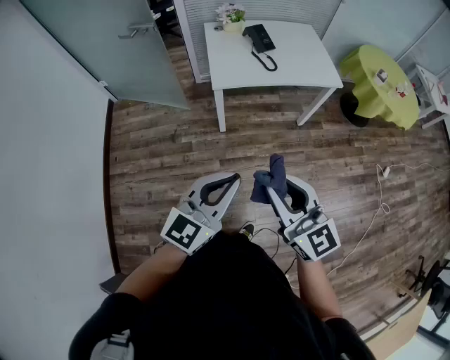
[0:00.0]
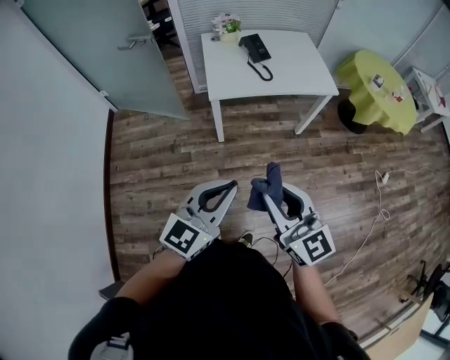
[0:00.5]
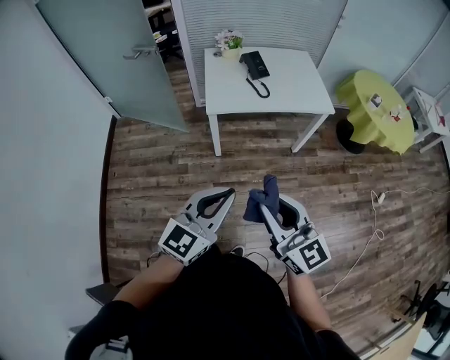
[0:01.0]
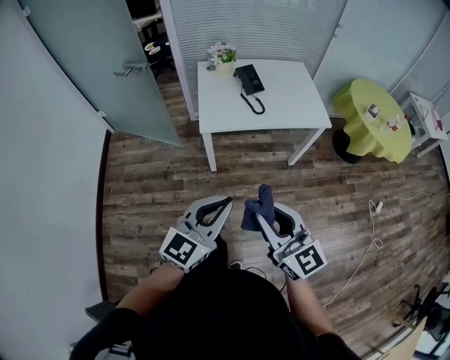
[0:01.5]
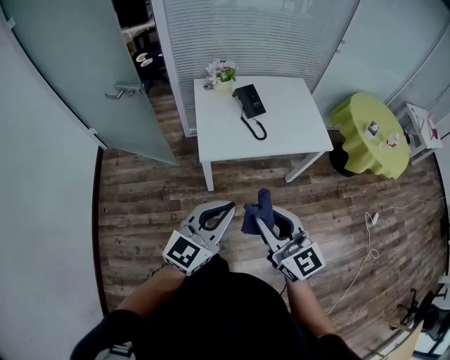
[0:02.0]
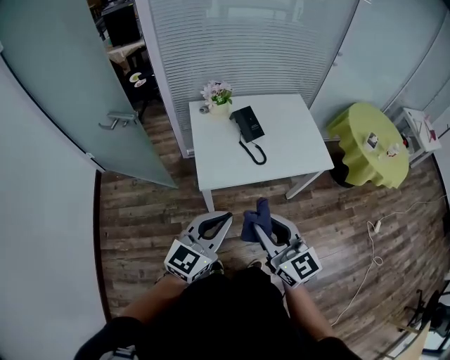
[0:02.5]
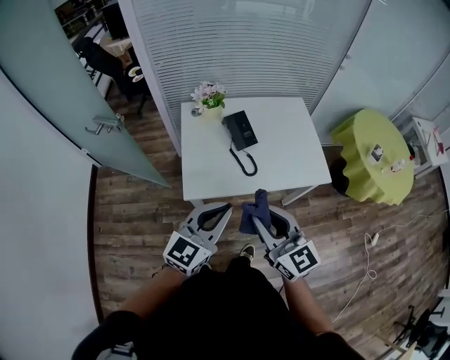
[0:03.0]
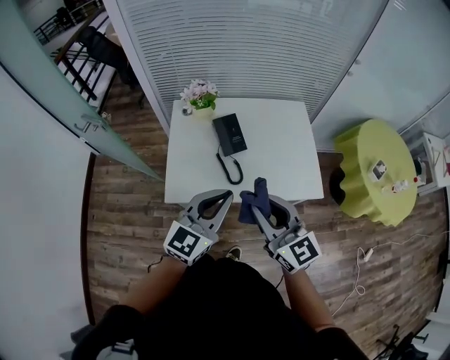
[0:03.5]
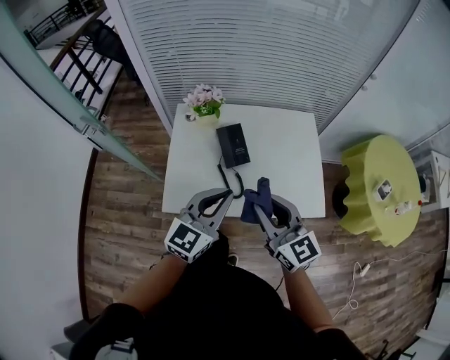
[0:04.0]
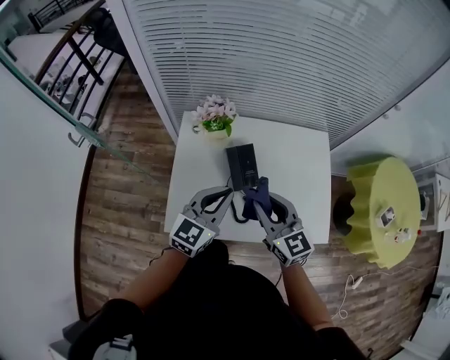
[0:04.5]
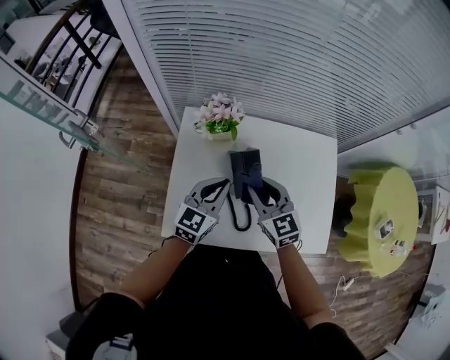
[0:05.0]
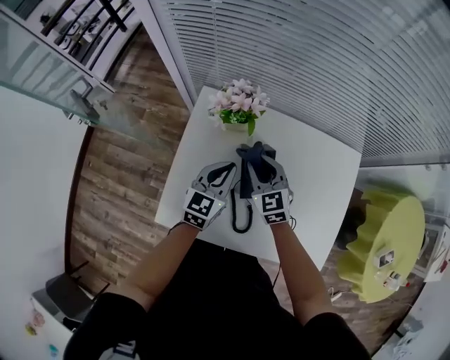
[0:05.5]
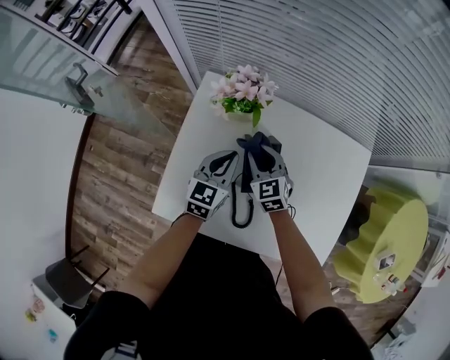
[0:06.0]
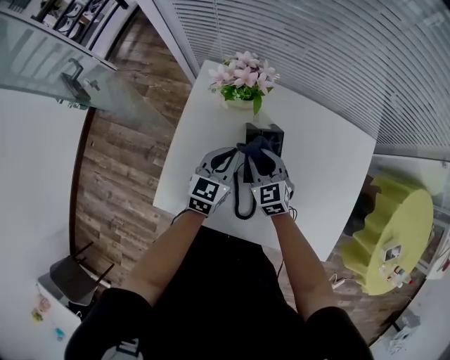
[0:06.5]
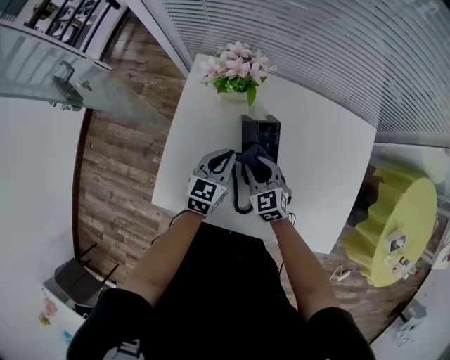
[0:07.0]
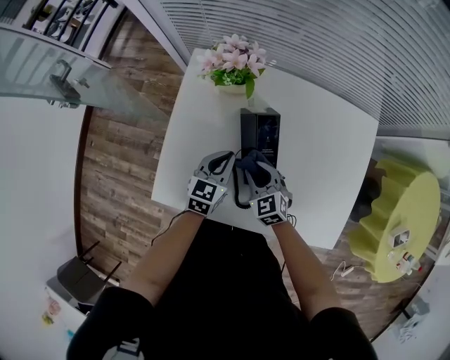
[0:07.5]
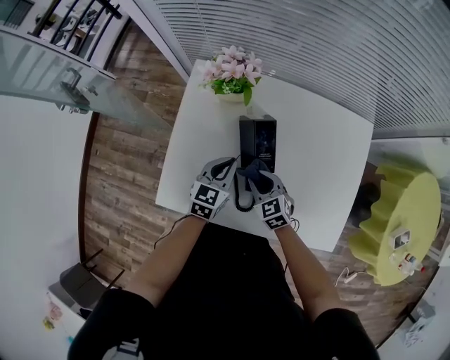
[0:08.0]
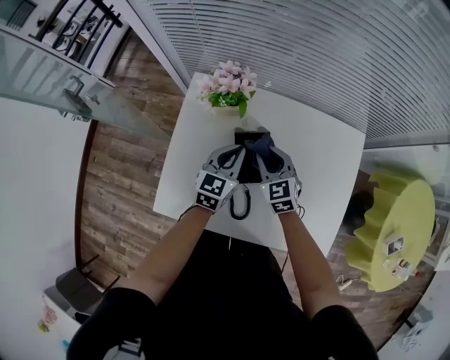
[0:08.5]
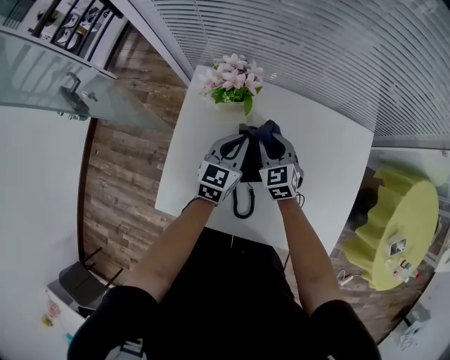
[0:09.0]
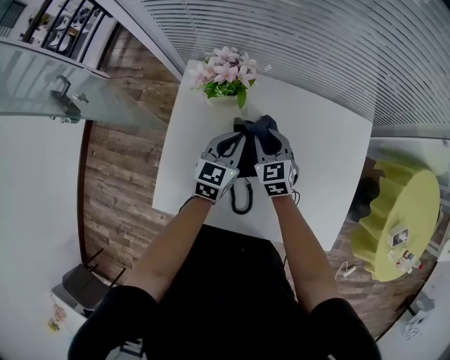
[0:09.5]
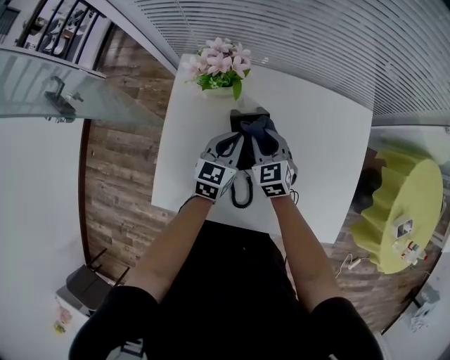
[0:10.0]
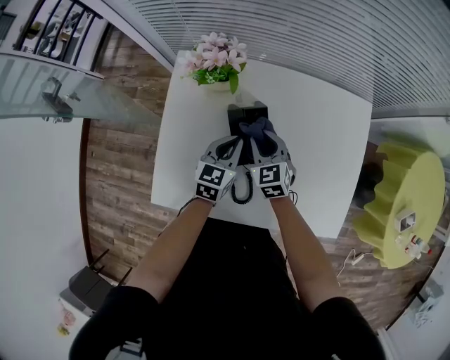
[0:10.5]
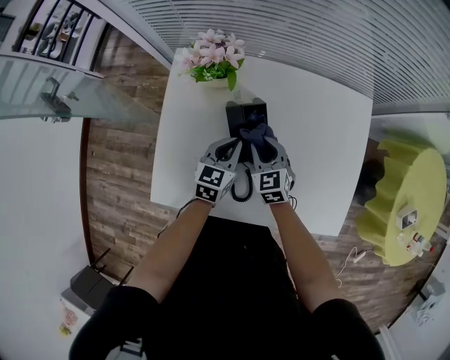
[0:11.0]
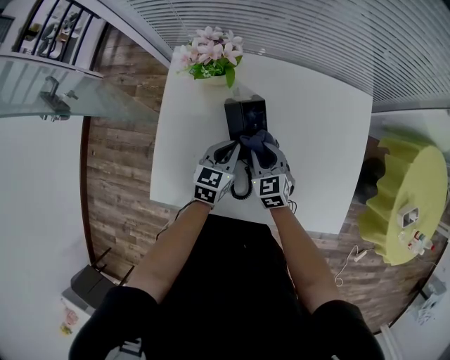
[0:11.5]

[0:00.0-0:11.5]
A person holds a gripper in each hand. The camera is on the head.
0.0 to 2.0 s: The grippers both shift forward by approximately 20 cm.
2.0 to 4.0 s: The pair of grippers is taken forward and to the right, some 40 cm.
4.0 to 6.0 s: The two grippers go roughly 40 cm forward and downward. The left gripper changes its angle by approximately 30 degrees. Meanwhile the right gripper swivels approximately 30 degrees.
6.0 to 7.5 s: The left gripper is displaced downward and backward by some 10 cm, while the right gripper is displaced backward and downward by some 15 cm.
7.5 to 9.5 s: Both grippers travel together forward and upward, some 15 cm.
9.5 to 11.5 s: The two grippers go roughly 10 cm backward and downward.

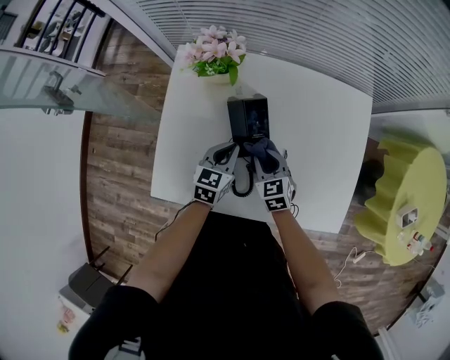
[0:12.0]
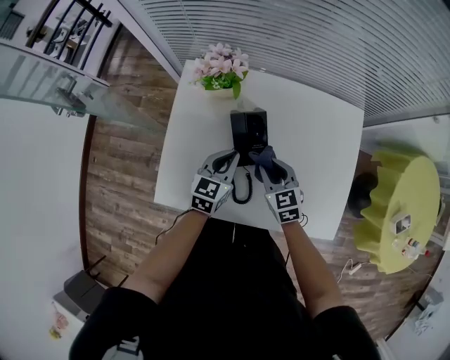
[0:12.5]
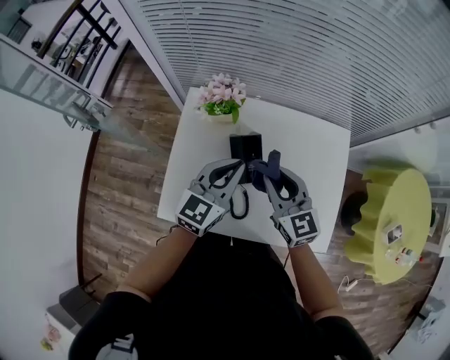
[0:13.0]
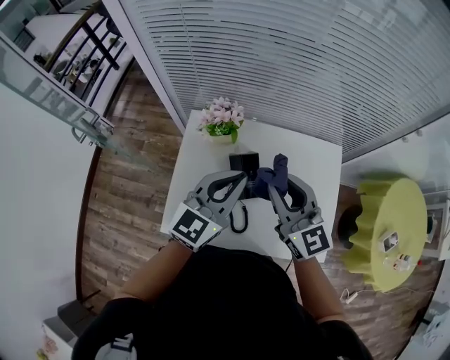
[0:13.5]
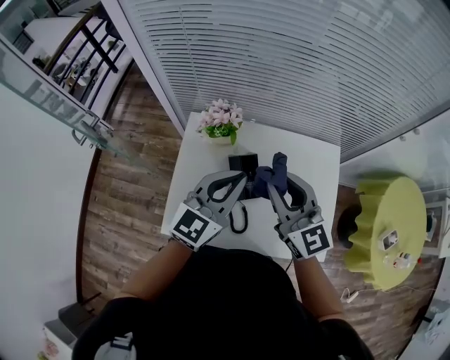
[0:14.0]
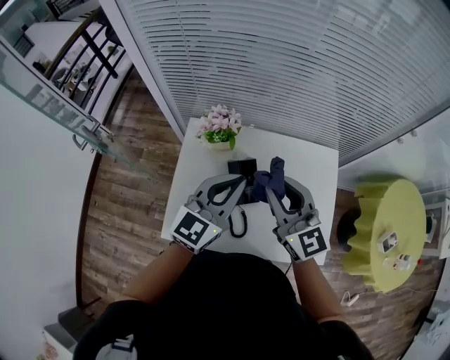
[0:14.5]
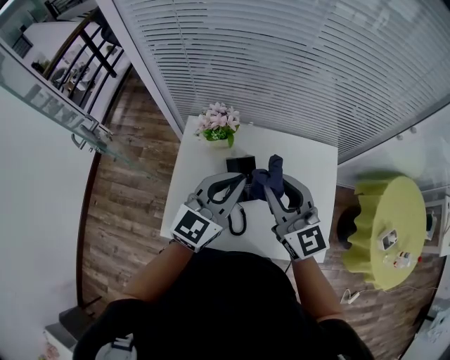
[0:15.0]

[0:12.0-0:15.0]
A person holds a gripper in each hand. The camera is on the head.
12.0 to 13.5 s: Both grippers travel together upward, some 35 cm. The left gripper rotates some 30 degrees. Meanwhile the right gripper tilts its fingers approximately 40 degrees upward.
13.5 to 15.0 s: There are only small adjustments of the grippers.

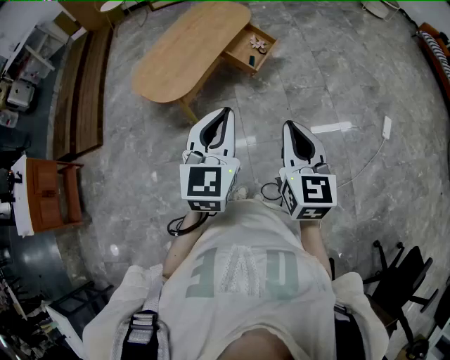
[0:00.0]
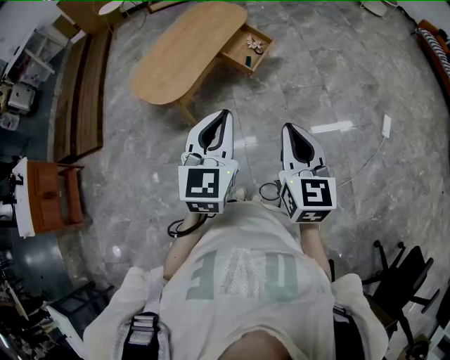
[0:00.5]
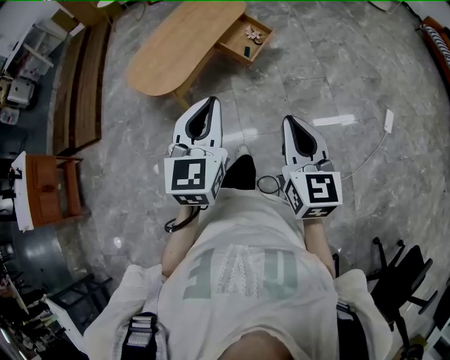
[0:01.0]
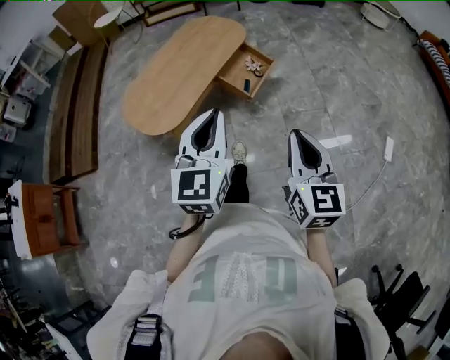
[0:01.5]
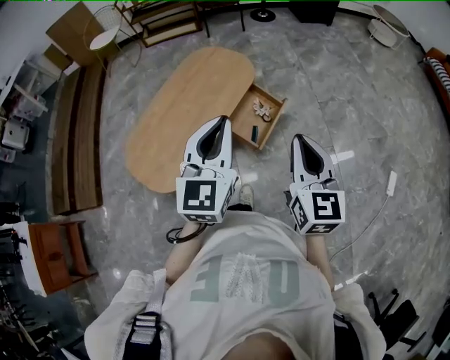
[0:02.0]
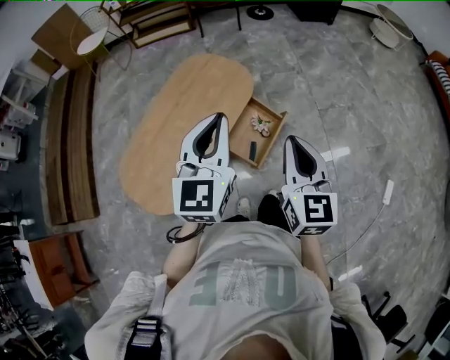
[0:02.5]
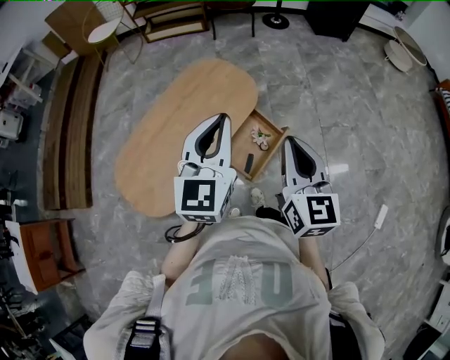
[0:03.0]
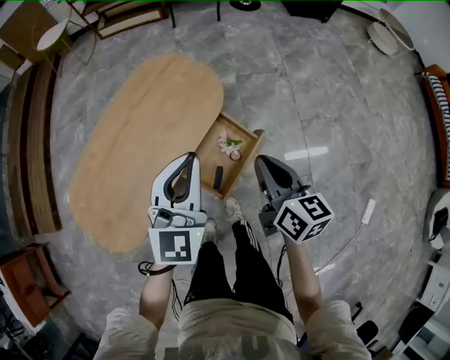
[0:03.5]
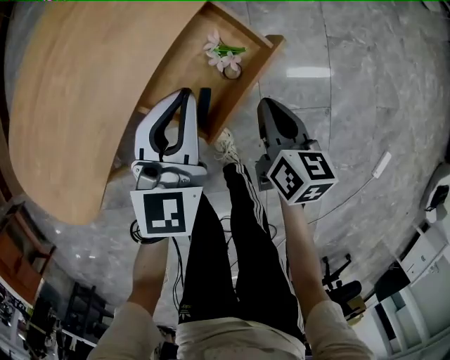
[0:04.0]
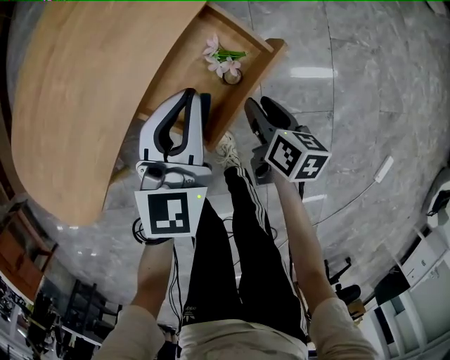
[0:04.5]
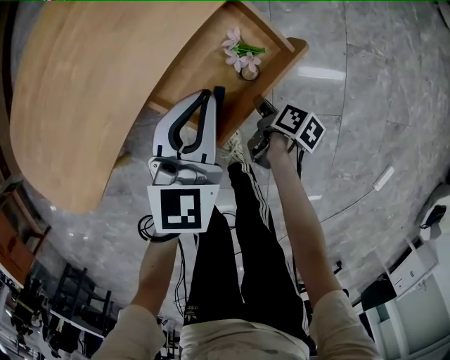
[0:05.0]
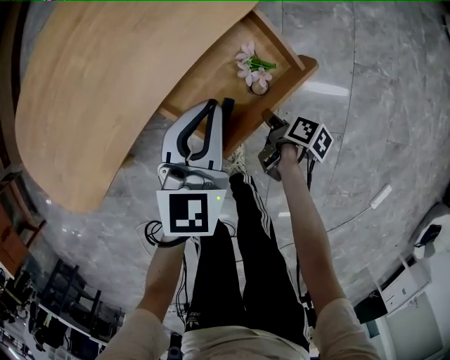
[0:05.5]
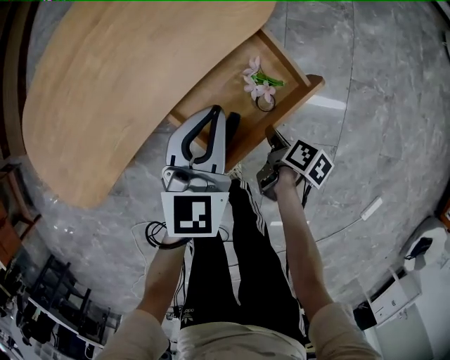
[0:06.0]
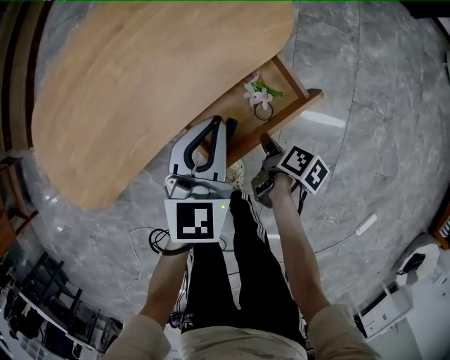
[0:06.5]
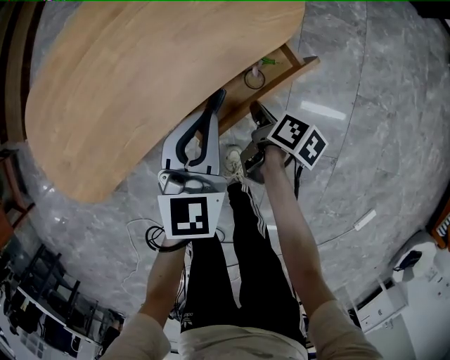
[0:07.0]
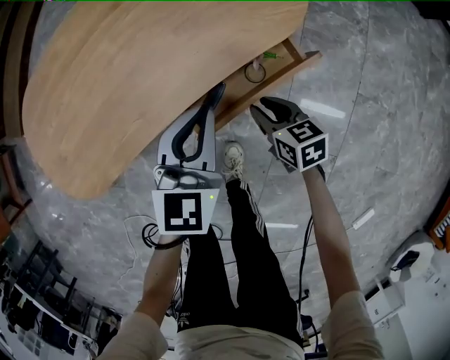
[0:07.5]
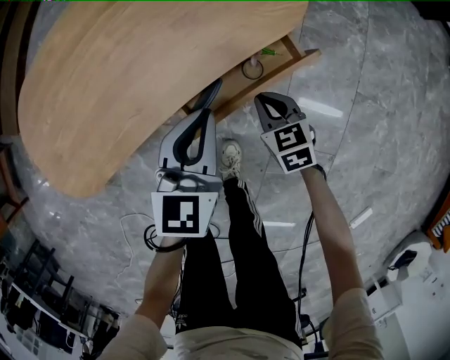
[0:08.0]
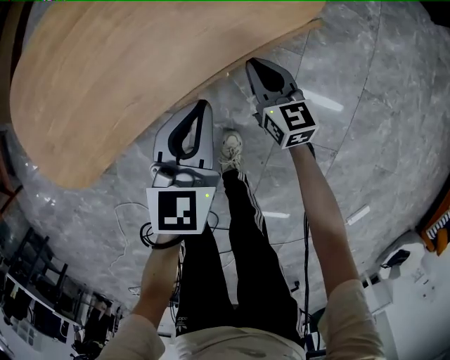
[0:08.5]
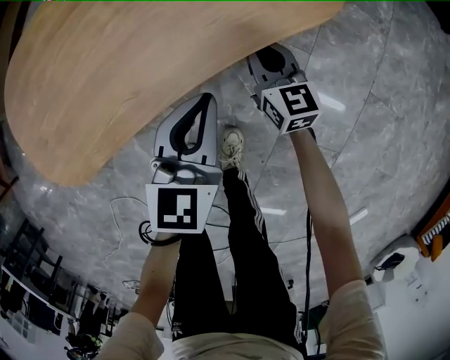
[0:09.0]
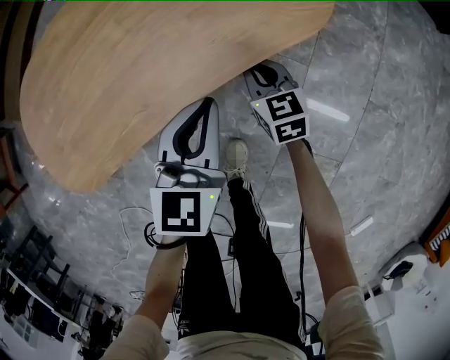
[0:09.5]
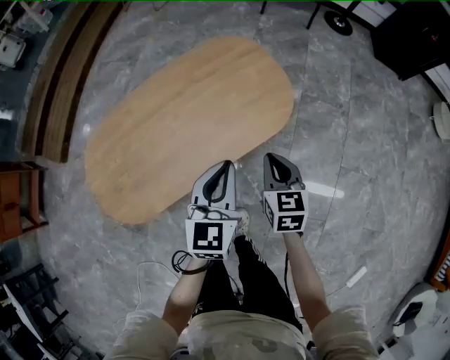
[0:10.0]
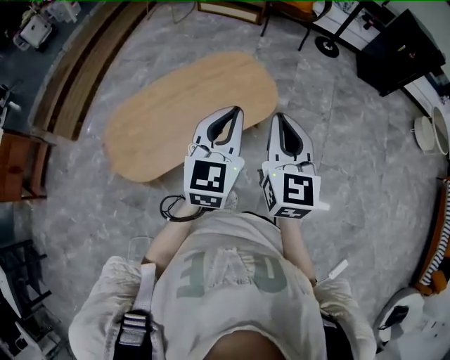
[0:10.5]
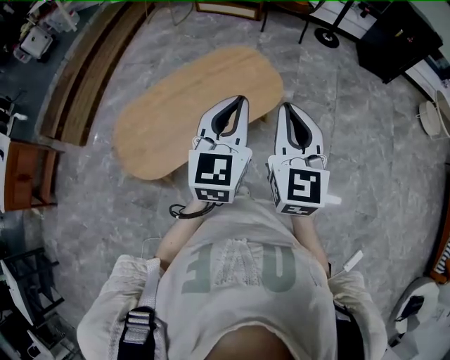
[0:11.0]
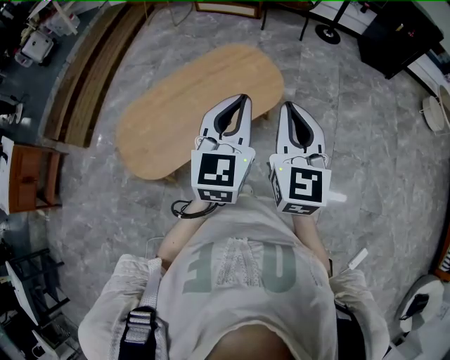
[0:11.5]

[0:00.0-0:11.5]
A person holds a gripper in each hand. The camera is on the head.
0.0 to 2.0 s: The pair of grippers is taken forward, approximately 40 cm.
2.0 to 4.0 s: The two grippers go roughly 60 cm downward and forward. The right gripper rotates about 40 degrees.
4.0 to 6.0 s: The right gripper travels downward by about 10 cm, and swivels about 40 degrees.
6.0 to 7.5 s: The right gripper is displaced forward and to the left by some 15 cm, and rotates around the line of its fingers by approximately 70 degrees, counterclockwise from behind; the left gripper goes some 5 cm to the left.
7.5 to 9.5 s: The right gripper heads forward, covering roughly 10 cm, rotates some 20 degrees, and closes up.
9.5 to 11.5 s: The two grippers go some 60 cm upward. The left gripper rotates roughly 20 degrees. The right gripper points its fingers roughly 30 degrees further upward.

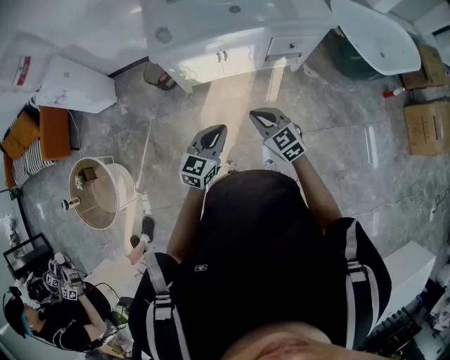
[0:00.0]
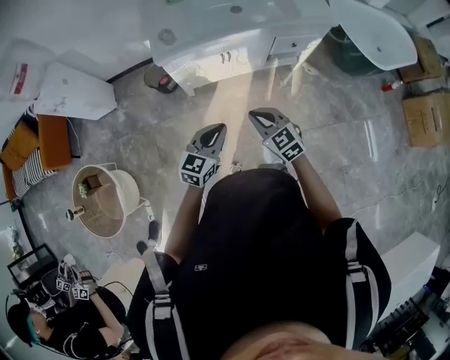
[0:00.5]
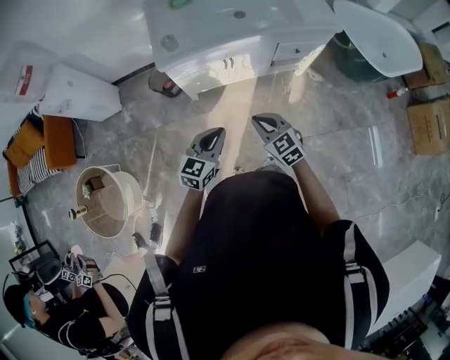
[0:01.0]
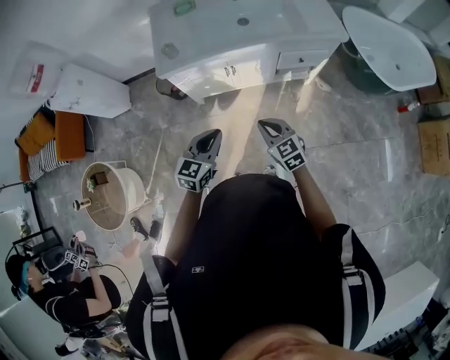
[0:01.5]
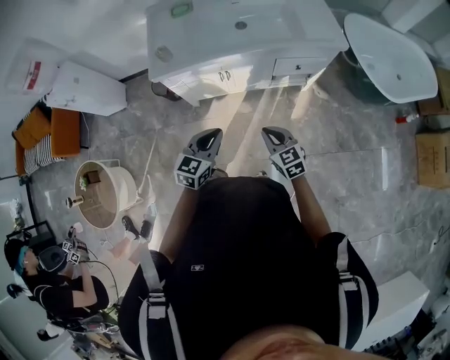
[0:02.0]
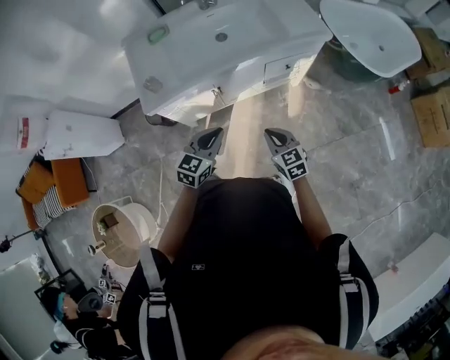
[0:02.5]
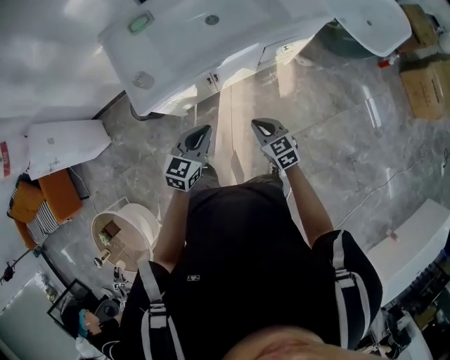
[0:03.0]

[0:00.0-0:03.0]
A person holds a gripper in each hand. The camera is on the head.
0.0 to 1.5 s: Both grippers move forward, about 5 cm.
1.5 to 3.0 s: The right gripper shifts roughly 15 cm forward, downward and to the left, and rotates some 20 degrees, while the left gripper goes roughly 15 cm forward and to the left.
